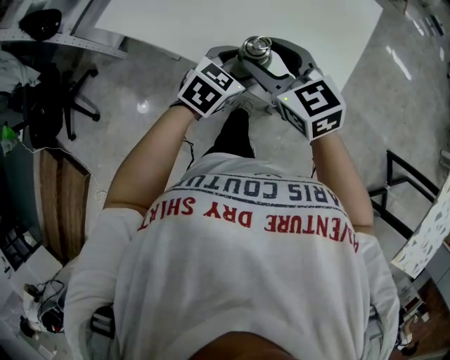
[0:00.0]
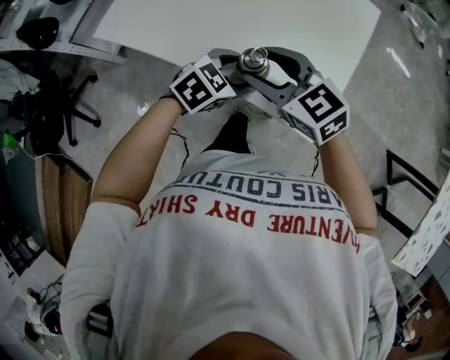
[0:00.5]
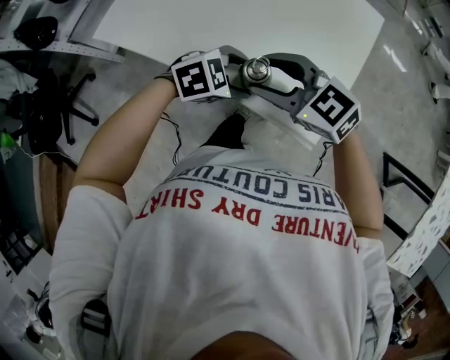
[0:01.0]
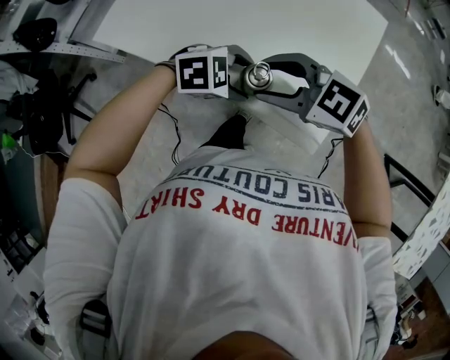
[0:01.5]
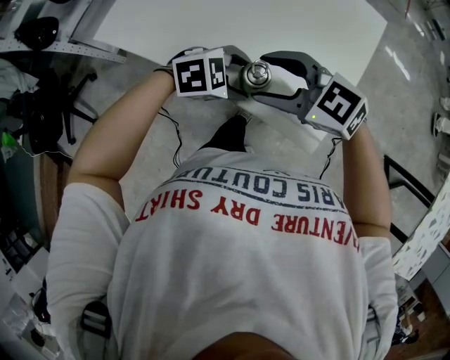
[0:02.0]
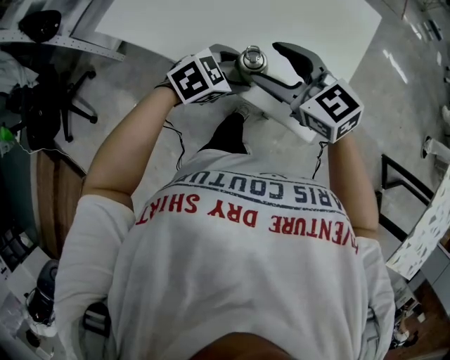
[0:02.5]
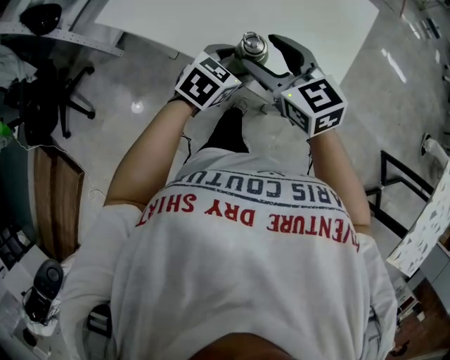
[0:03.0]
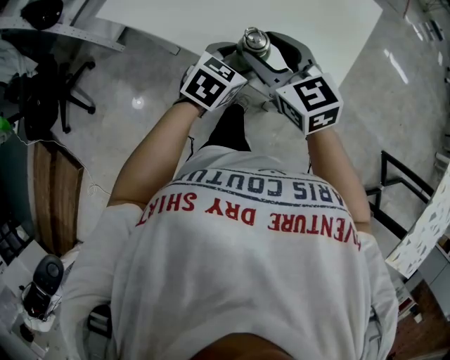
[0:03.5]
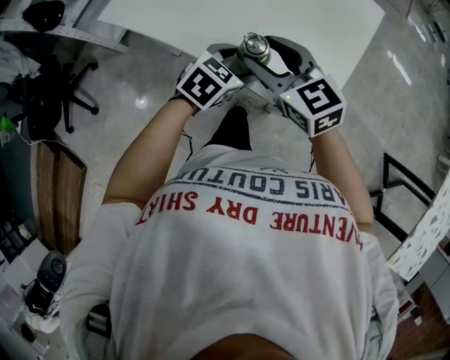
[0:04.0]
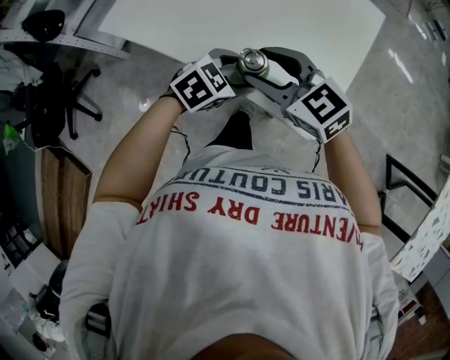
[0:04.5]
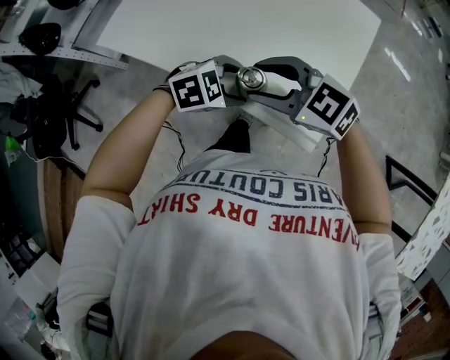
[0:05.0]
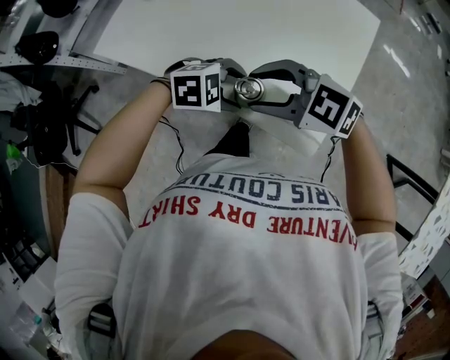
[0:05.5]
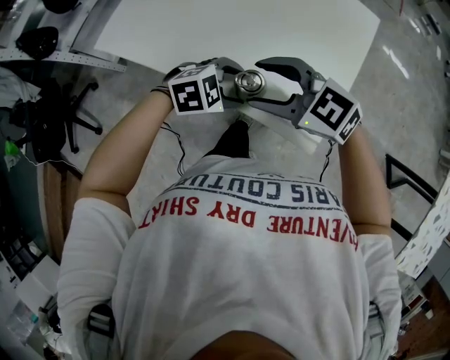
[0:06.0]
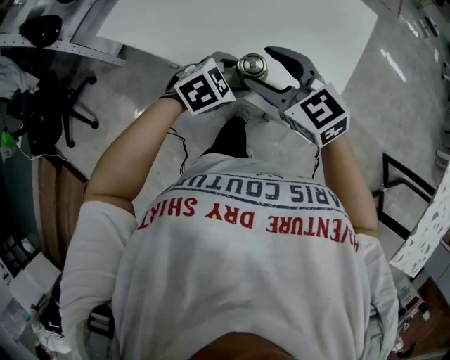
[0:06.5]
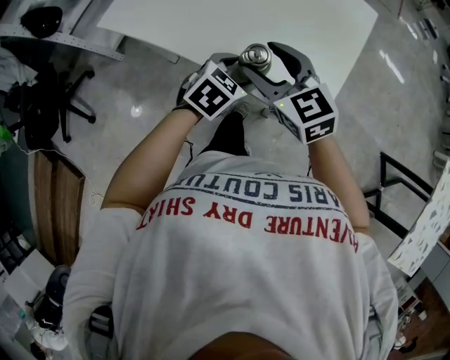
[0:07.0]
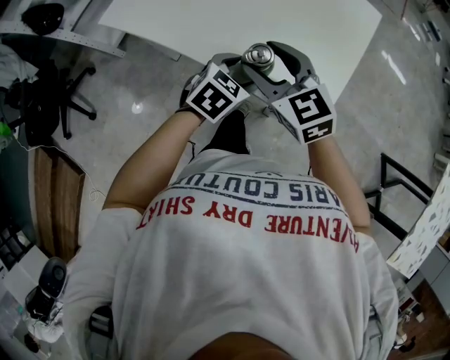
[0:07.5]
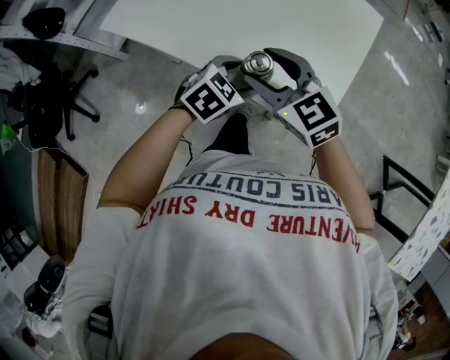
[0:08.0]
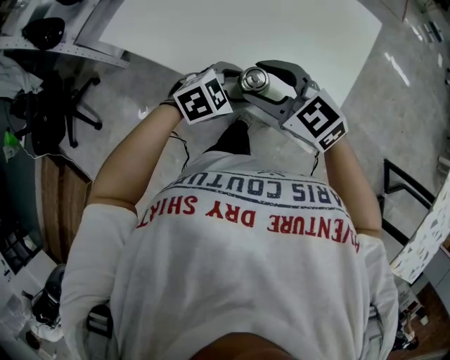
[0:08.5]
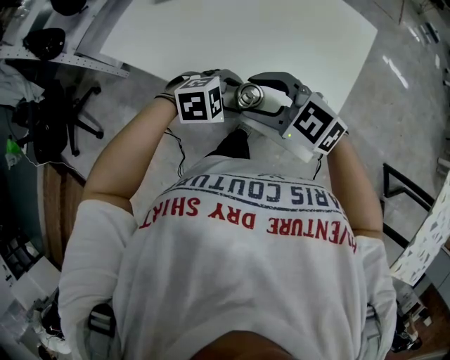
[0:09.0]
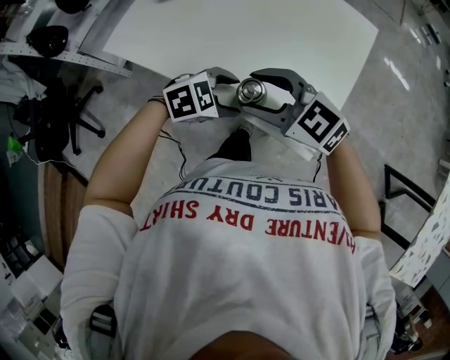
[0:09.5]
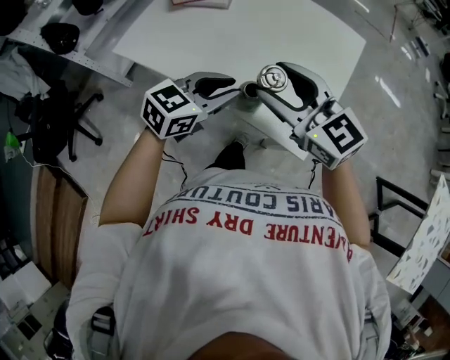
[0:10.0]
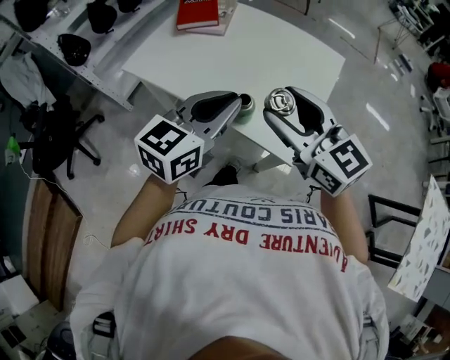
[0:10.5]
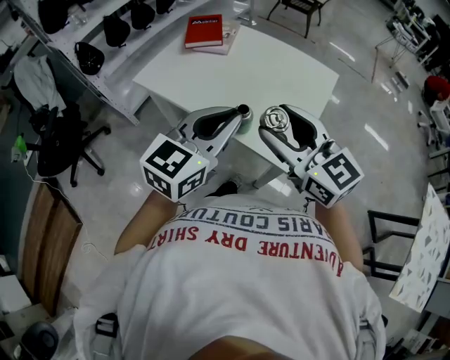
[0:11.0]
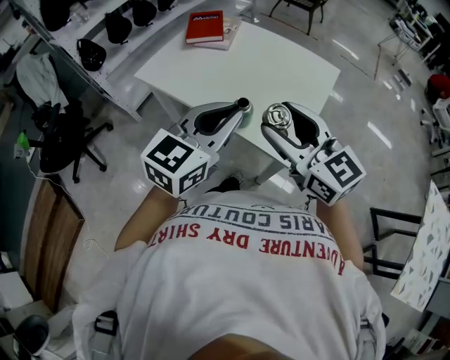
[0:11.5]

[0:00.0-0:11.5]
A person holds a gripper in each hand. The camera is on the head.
0:00.0 to 0:02.0: The right gripper rotates about 30 degrees, while the left gripper changes its angle by some 40 degrees.
0:02.0 to 0:04.0: The left gripper changes its angle by about 40 degrees; the right gripper rotates about 30 degrees.
0:04.0 to 0:06.0: The right gripper changes its angle by about 30 degrees; the left gripper swivels about 40 degrees.
0:06.0 to 0:07.5: The left gripper changes its angle by approximately 40 degrees. The right gripper changes its angle by about 30 degrees.
0:07.5 to 0:09.5: The left gripper swivels some 40 degrees. Meanwhile the right gripper rotates roughly 30 degrees.
0:09.5 to 0:11.5: The left gripper shifts roughly 30 cm upward, angles its fingers upward, by roughly 40 degrees, and closes its fingers, while the right gripper goes about 20 cm upward, and changes its angle by approximately 30 degrees.

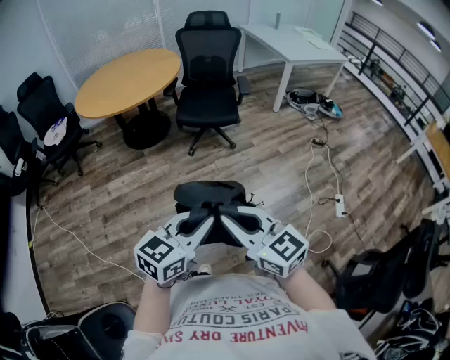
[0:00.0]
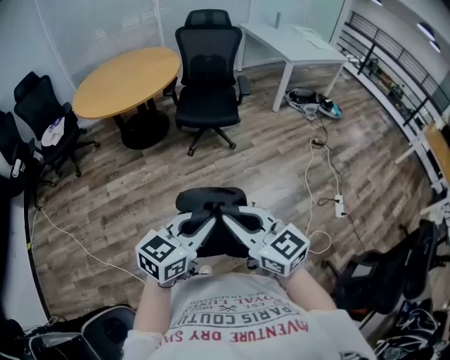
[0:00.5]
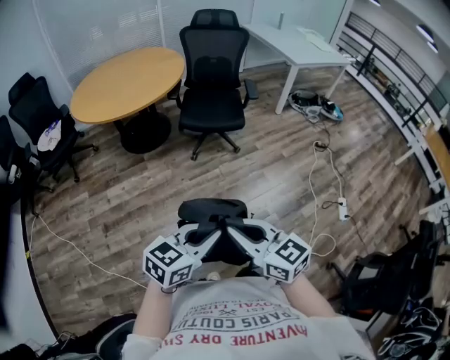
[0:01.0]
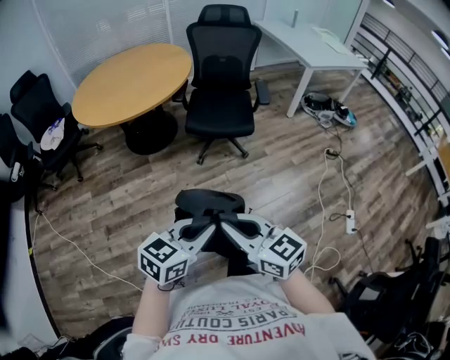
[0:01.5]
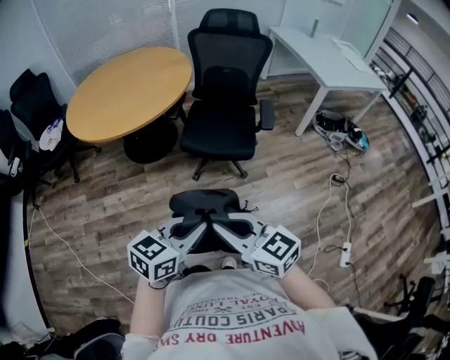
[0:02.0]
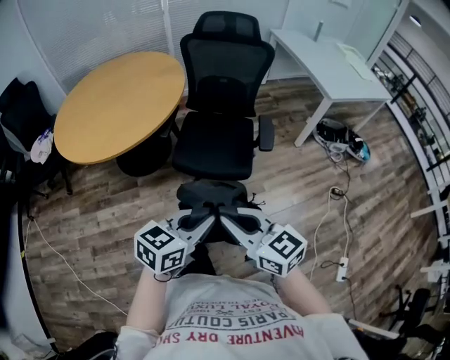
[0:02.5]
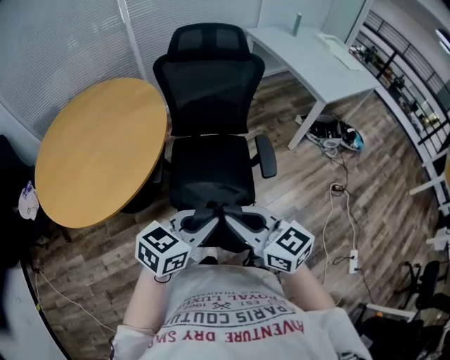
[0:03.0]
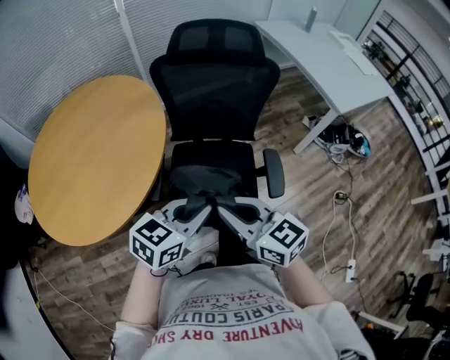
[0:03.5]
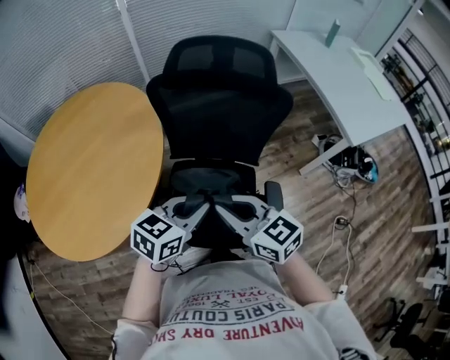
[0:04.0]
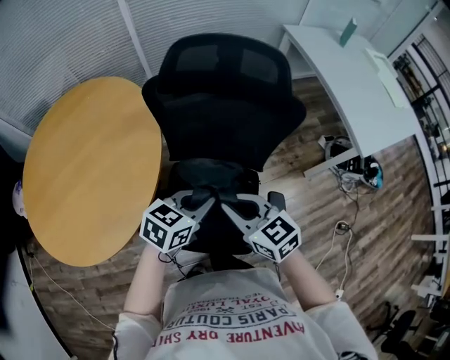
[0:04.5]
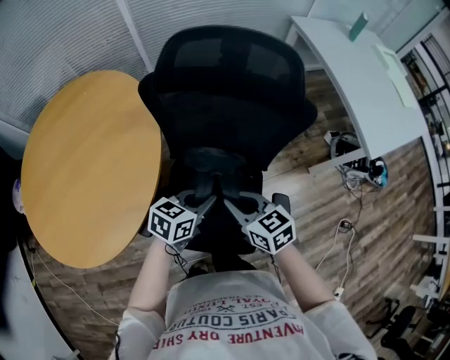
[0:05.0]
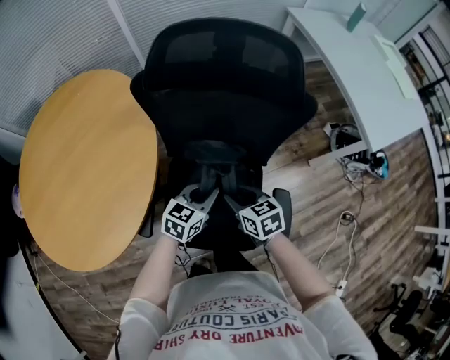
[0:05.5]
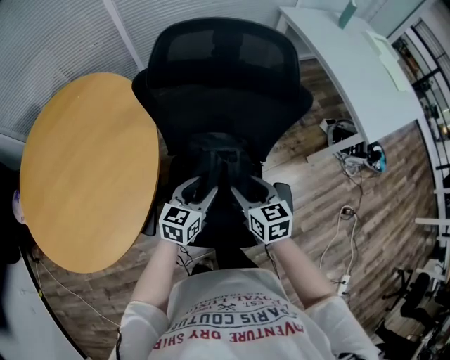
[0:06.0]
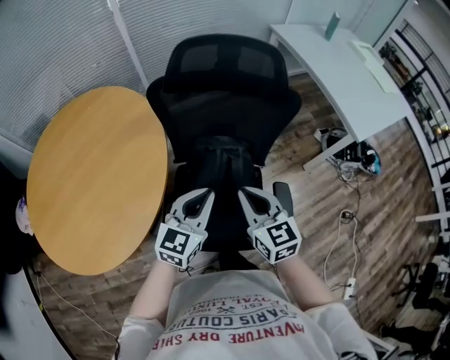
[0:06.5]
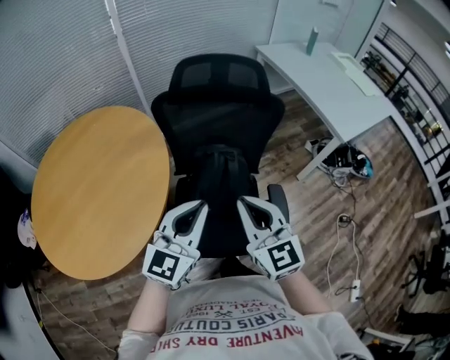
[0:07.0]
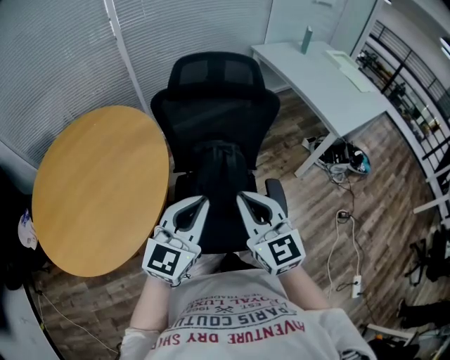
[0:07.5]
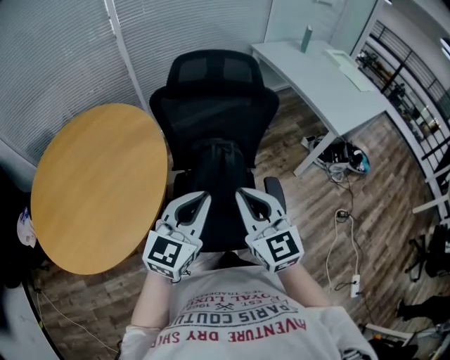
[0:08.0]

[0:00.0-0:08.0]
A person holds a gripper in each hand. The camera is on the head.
0:00.0 to 0:02.0: The grippers both shift forward by approximately 35 cm.
0:02.0 to 0:04.0: Both grippers are carried forward, some 70 cm.
0:04.0 to 0:06.0: The two grippers go approximately 20 cm downward and forward. The right gripper changes its angle by some 30 degrees, and opens its fingers. The left gripper opens up.
0:06.0 to 0:08.0: Both grippers travel together upward and backward, approximately 30 cm. The left gripper turns by roughly 30 degrees, and closes; the right gripper rotates some 30 degrees, and closes up.

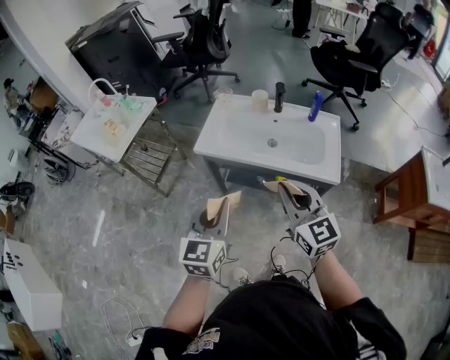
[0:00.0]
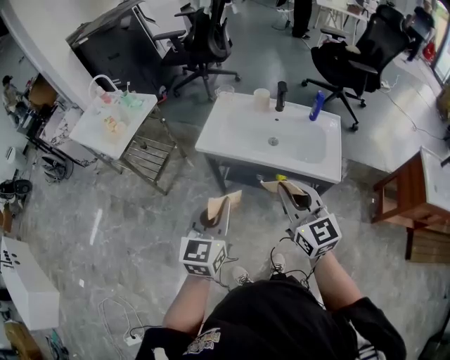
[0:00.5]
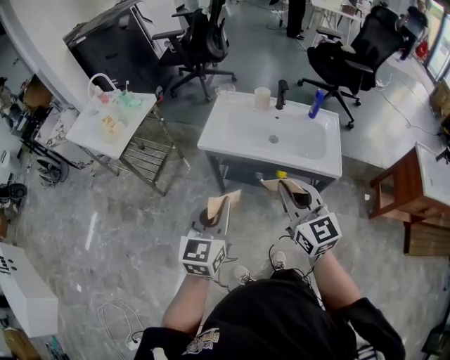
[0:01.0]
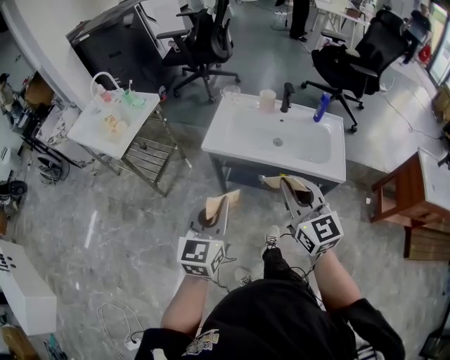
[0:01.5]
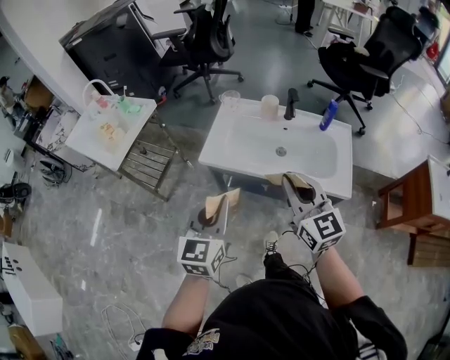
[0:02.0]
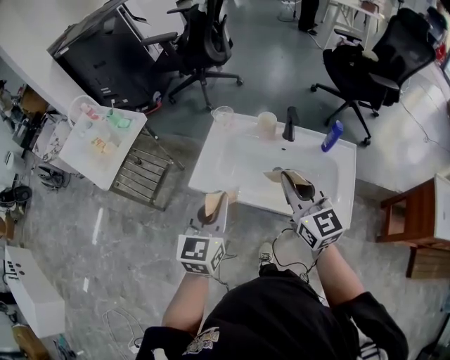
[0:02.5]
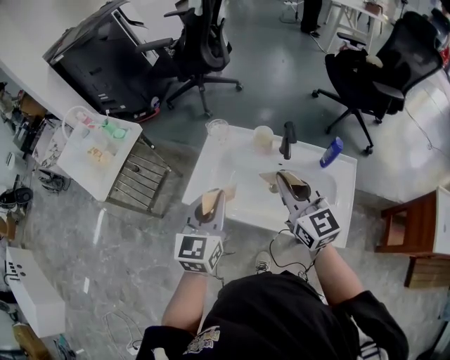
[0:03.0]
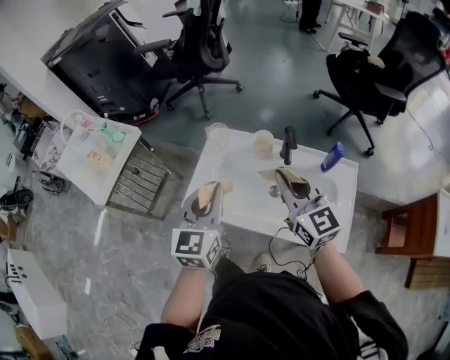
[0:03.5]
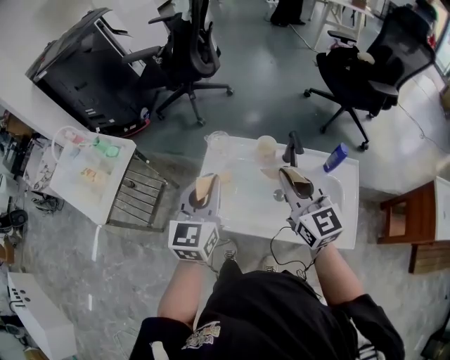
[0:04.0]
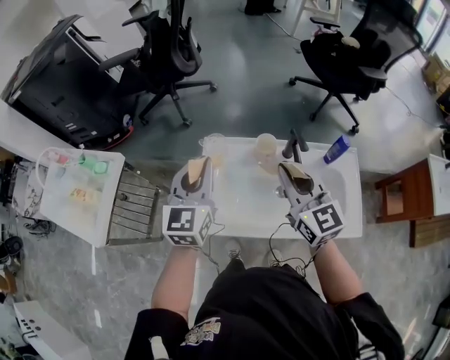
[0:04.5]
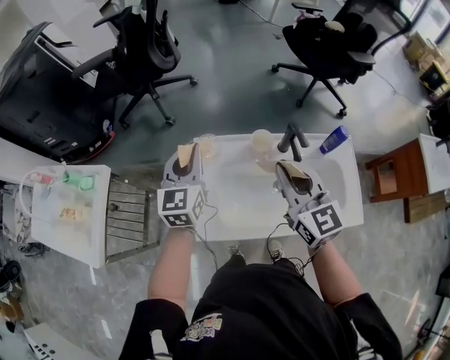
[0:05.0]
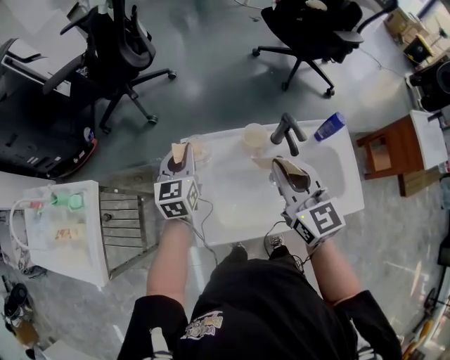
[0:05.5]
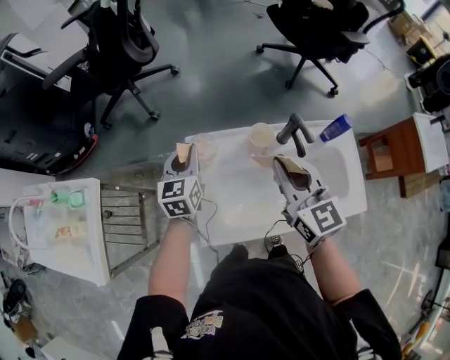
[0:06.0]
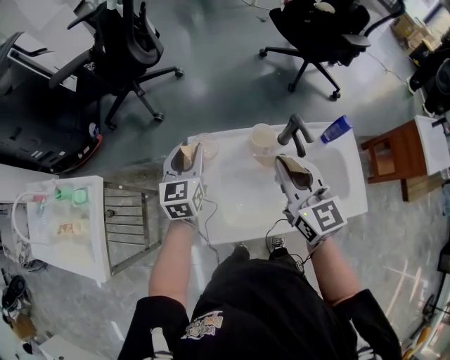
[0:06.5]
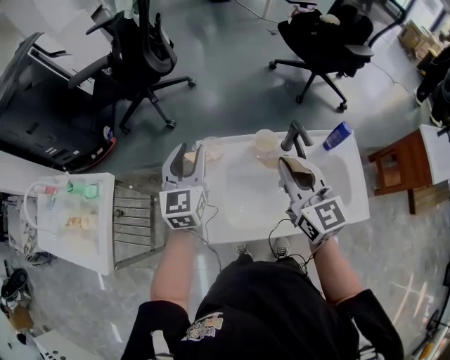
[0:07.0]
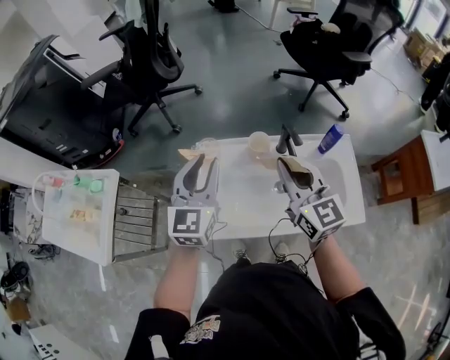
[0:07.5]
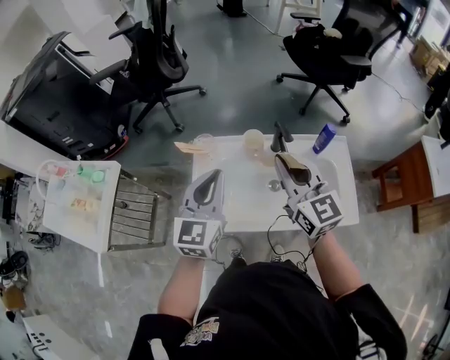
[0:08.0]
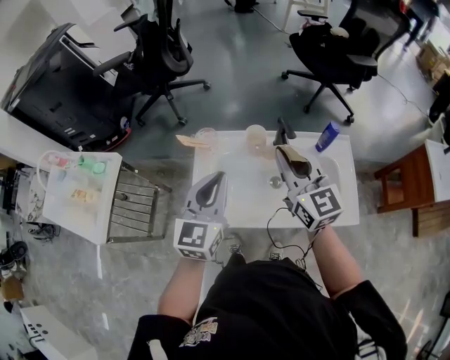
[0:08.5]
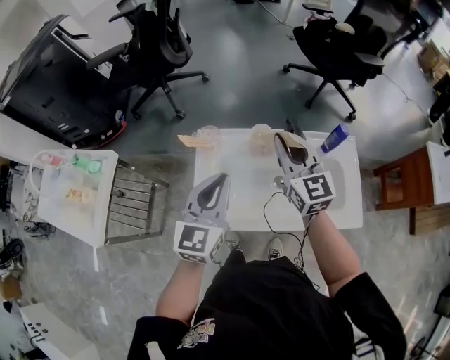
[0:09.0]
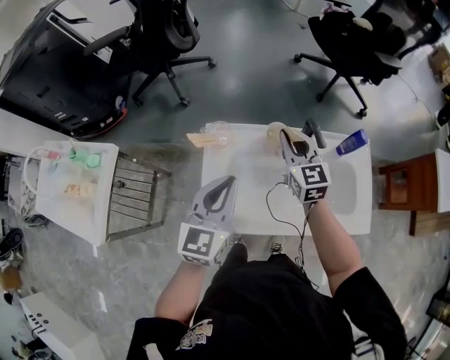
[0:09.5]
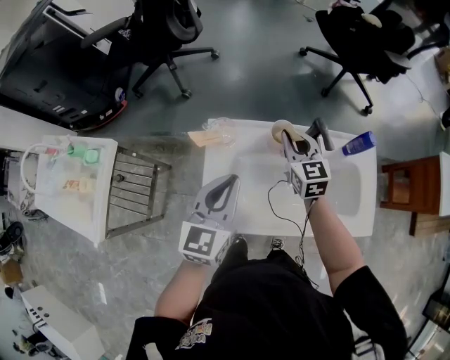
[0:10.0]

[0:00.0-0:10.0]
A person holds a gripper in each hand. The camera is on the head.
0:00.0 to 0:02.0: The grippers both shift forward by roughly 10 cm.
0:02.0 to 0:04.0: The two grippers go approximately 30 cm forward.
0:04.0 to 0:06.0: The right gripper travels forward, to the left and downward by about 10 cm, and rotates roughly 20 degrees; the left gripper shifts approximately 30 cm forward and downward.
0:06.0 to 0:08.0: The right gripper moves backward, to the right and upward, roughly 10 cm; the left gripper shifts some 30 cm backward, upward and to the right, and opens and closes again.
0:08.0 to 0:10.0: The right gripper travels downward and forward by approximately 25 cm, and rotates approximately 20 degrees; the left gripper is displaced downward by approximately 10 cm.
